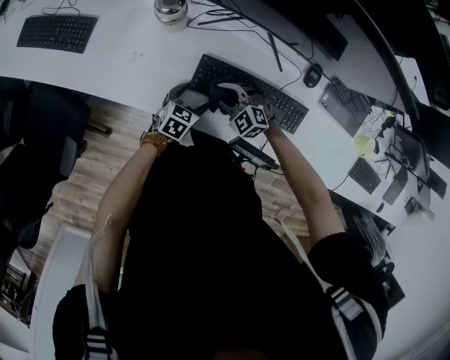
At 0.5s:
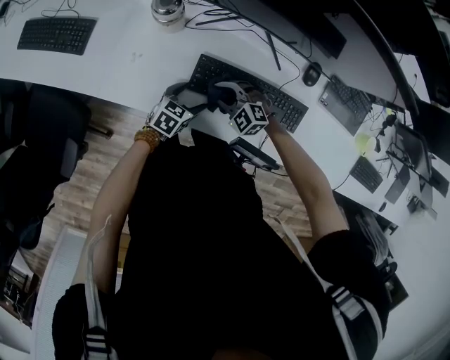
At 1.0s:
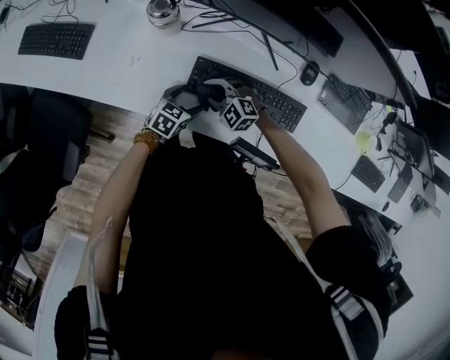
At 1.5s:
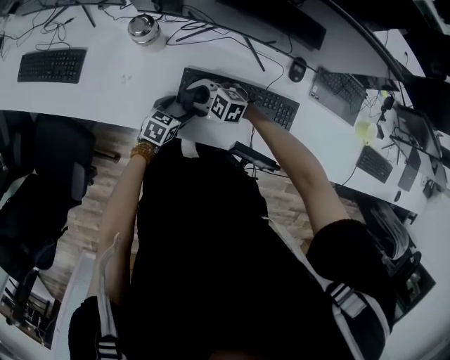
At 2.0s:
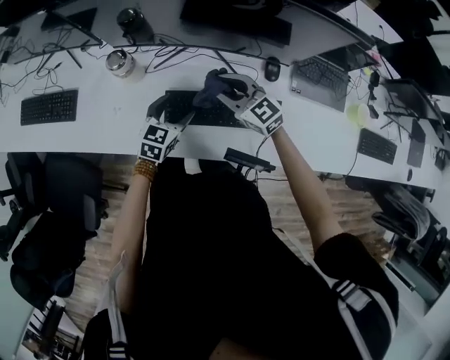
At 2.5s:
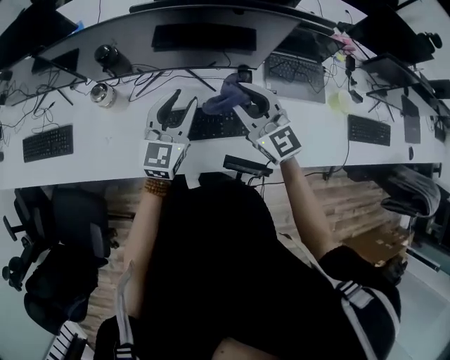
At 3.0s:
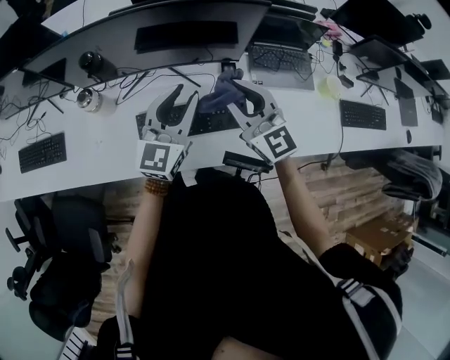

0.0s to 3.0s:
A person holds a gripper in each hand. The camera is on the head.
0.0s to 1.5s: The right gripper shifts by approximately 5 cm.
1.5s to 3.0s: Both grippers move upward, approximately 35 cm. The left gripper tips its fingers upward by some 50 degrees, and closes its fingers; the right gripper angles its fingers upward, by some 40 degrees.

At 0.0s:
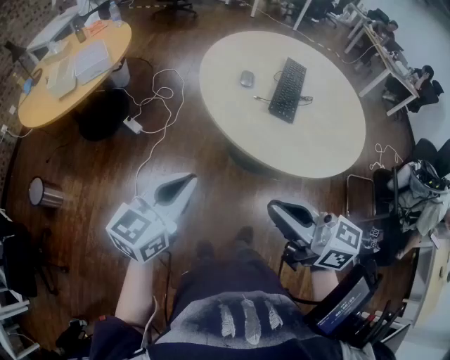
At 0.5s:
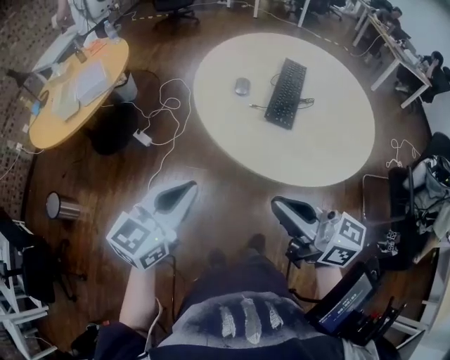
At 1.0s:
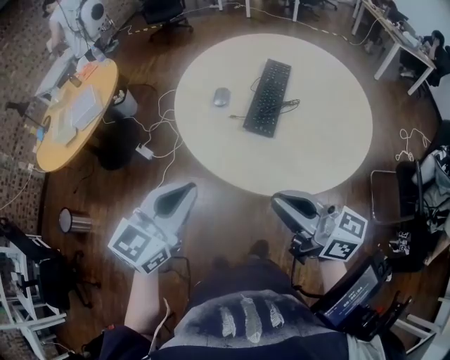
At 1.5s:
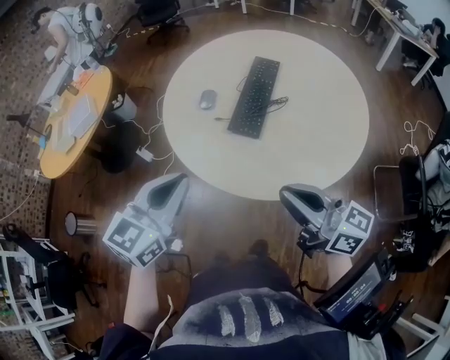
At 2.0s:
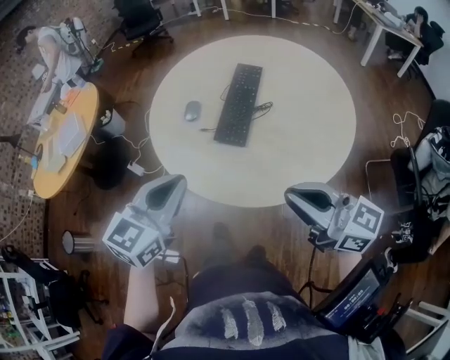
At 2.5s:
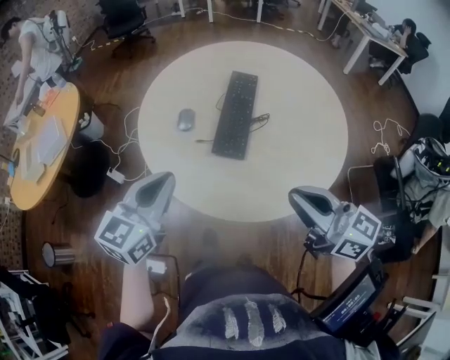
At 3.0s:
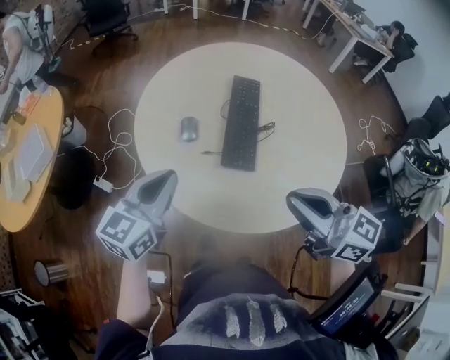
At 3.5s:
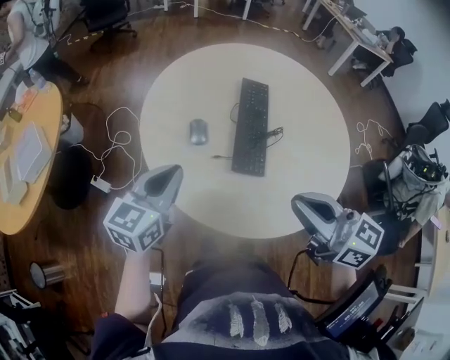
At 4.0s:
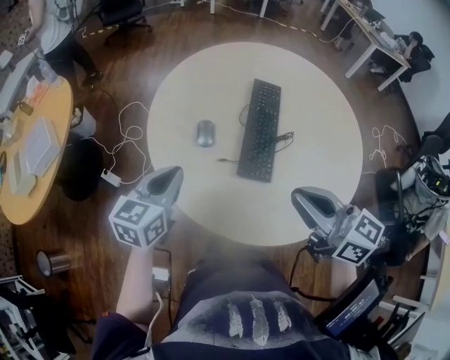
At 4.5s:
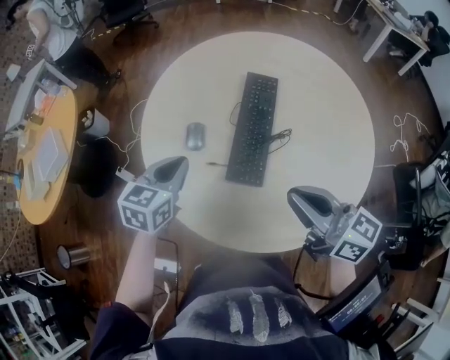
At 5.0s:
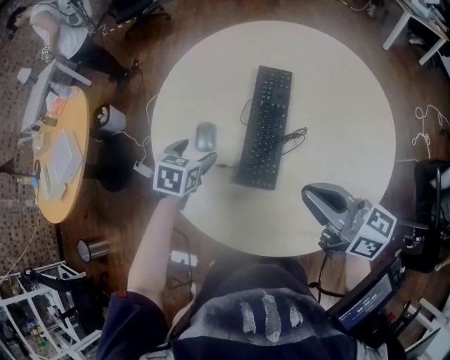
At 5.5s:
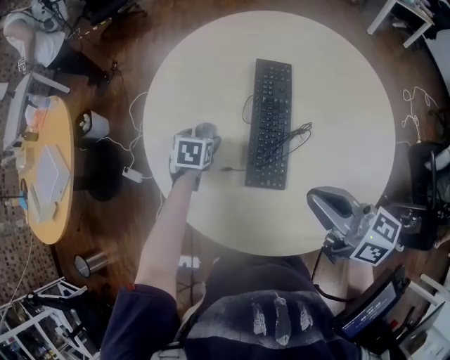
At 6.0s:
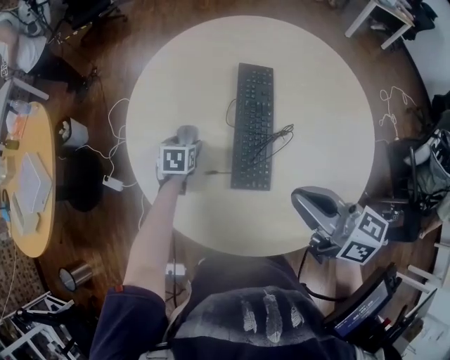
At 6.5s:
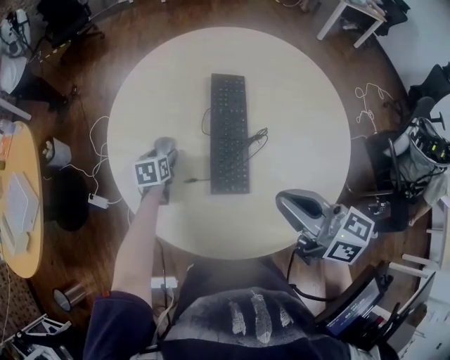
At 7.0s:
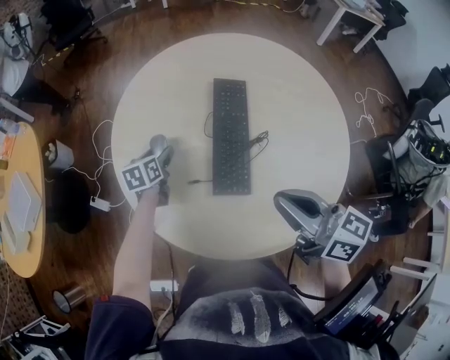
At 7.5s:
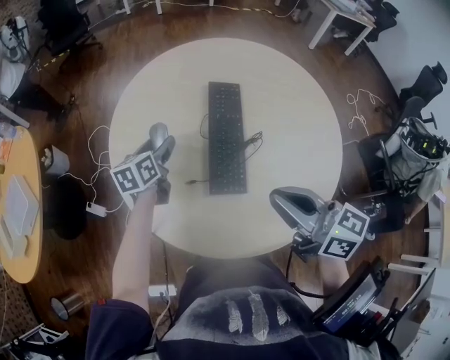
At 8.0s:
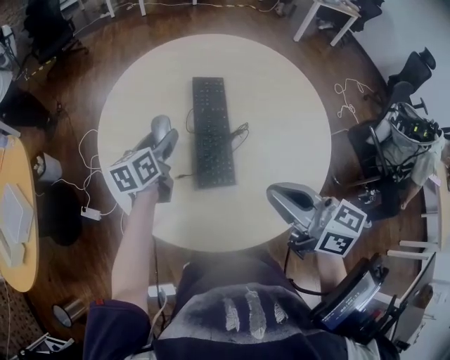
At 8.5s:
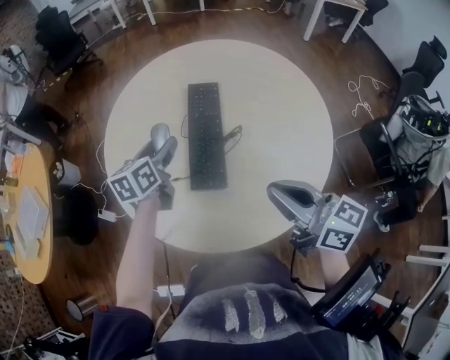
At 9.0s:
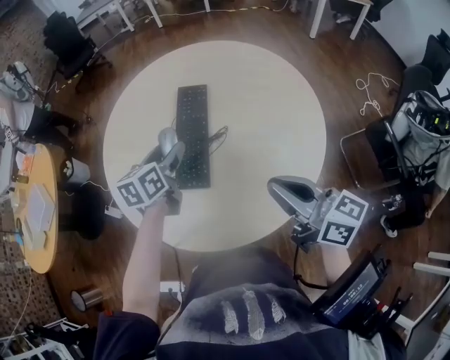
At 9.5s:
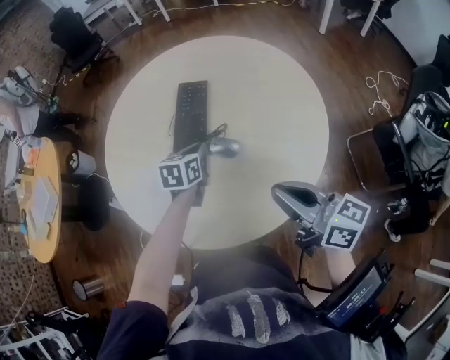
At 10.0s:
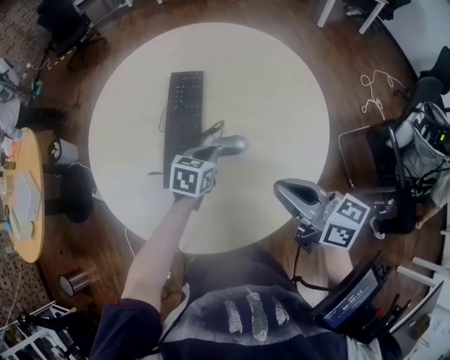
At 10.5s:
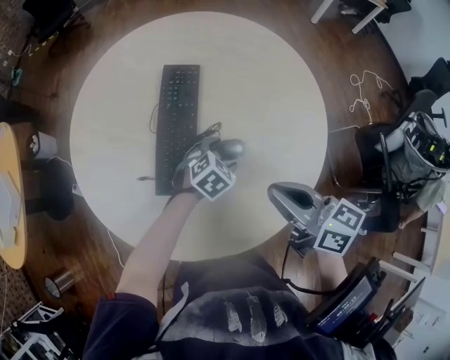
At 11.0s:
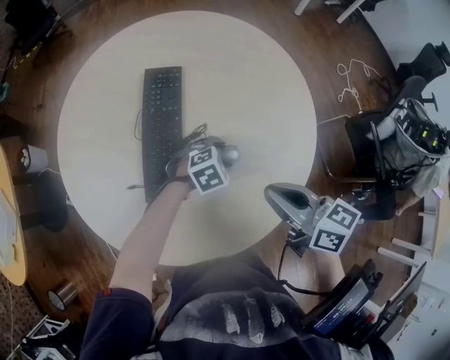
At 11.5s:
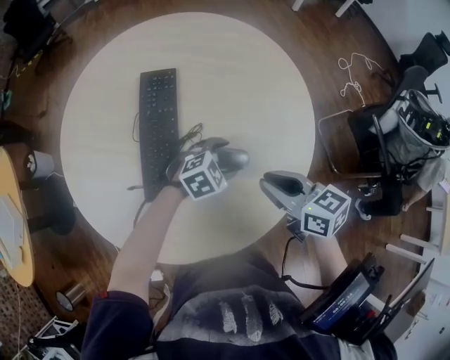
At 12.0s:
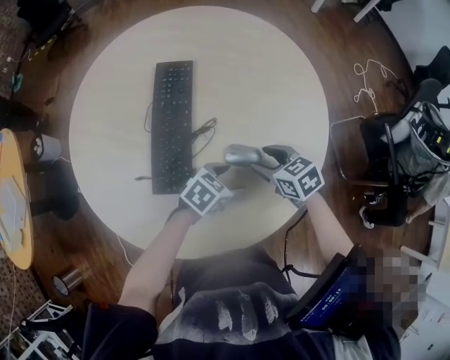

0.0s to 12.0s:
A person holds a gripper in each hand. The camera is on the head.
0.0s to 2.0s: The right gripper moves to the right, roughly 30 cm. The left gripper shifts approximately 25 cm to the right and forward.
2.0s to 4.0s: The right gripper heads forward and to the left, covering about 20 cm. The left gripper is displaced forward, to the left and downward by some 25 cm.
4.0s to 6.0s: The left gripper heads downward and forward, covering some 30 cm, points its fingers some 30 degrees further downward, and opens its fingers; the right gripper moves forward, some 5 cm.
6.0s to 8.0s: The left gripper shifts about 15 cm upward, and tilts its fingers about 30 degrees upward. The right gripper shifts by some 5 cm.
8.0s to 10.0s: The grippers both shift to the right by roughly 20 cm. The left gripper changes its angle by roughly 30 degrees, and closes up.
10.0s to 12.0s: The right gripper shifts about 20 cm downward, angles its fingers downward, by some 40 degrees, and opens up; the left gripper moves about 10 cm, rotates some 30 degrees, and opens up.

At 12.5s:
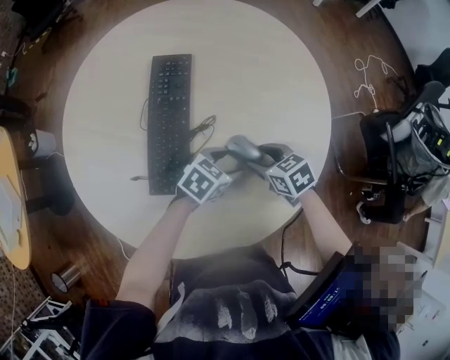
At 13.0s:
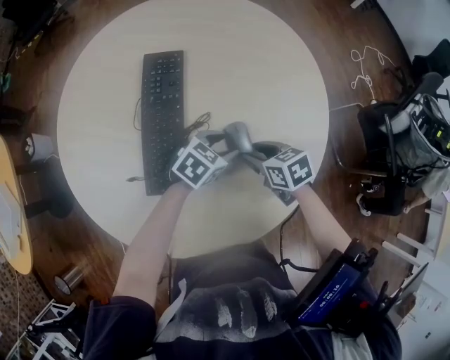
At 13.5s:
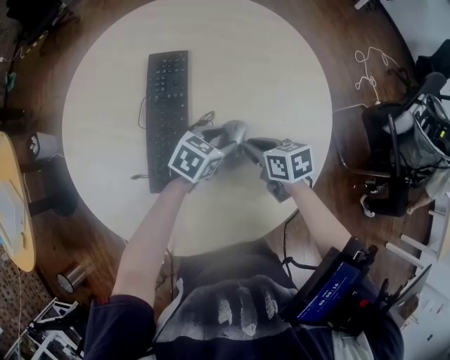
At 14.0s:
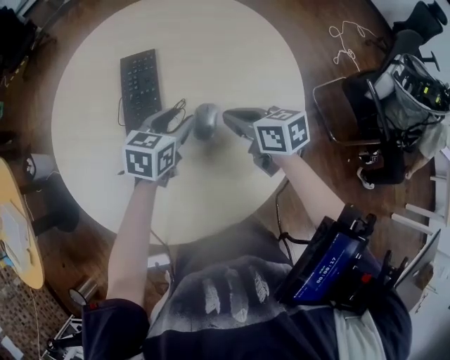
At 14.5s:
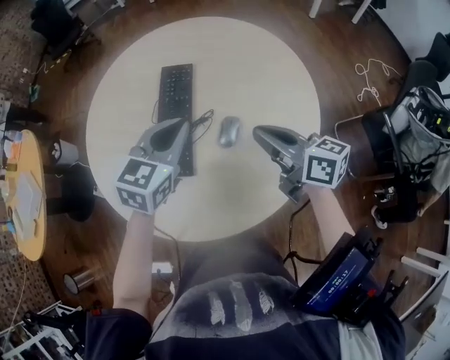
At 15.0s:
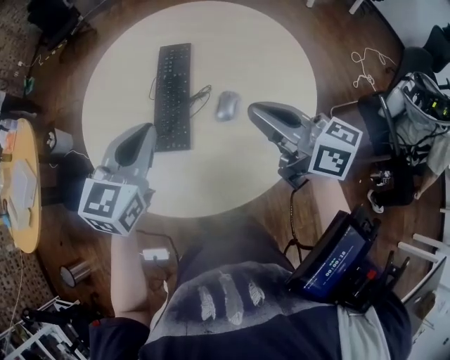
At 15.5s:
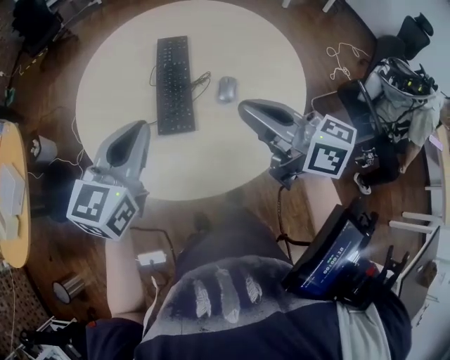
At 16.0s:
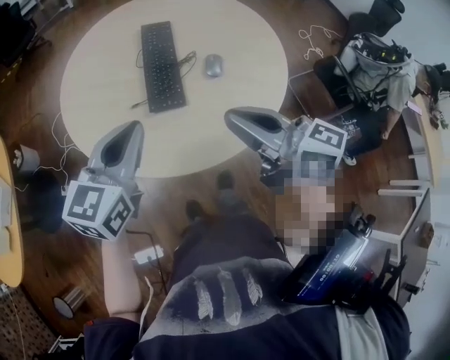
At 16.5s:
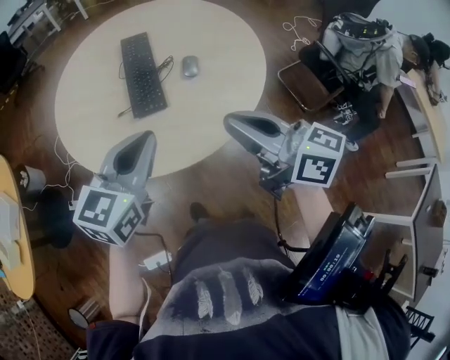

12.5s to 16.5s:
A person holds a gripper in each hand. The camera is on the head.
12.5s to 14.5s: The grippers both shift upward by some 20 cm. The right gripper angles its fingers upward, by about 40 degrees, and closes its fingers, while the left gripper changes its angle by about 40 degrees, and closes its fingers.
14.5s to 16.5s: The left gripper goes roughly 30 cm backward and to the left, while the right gripper goes about 30 cm backward, to the left and upward.

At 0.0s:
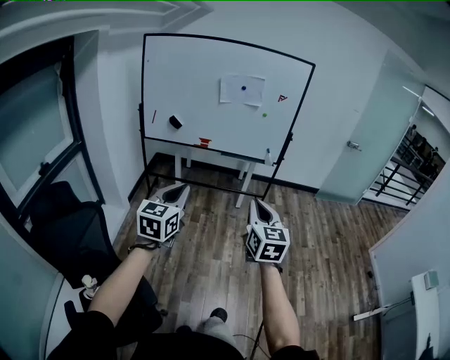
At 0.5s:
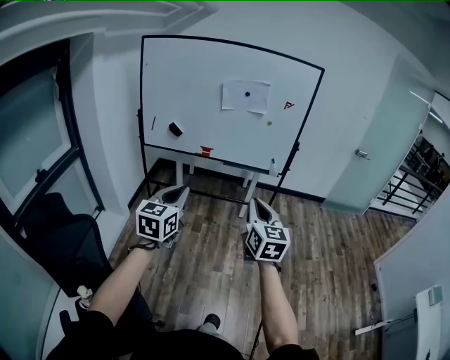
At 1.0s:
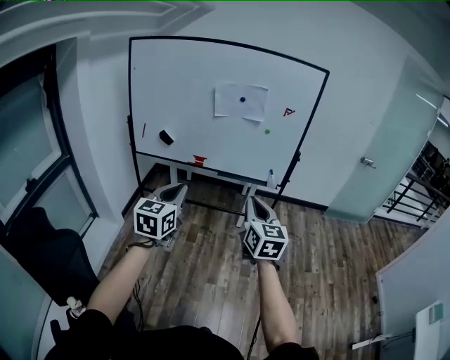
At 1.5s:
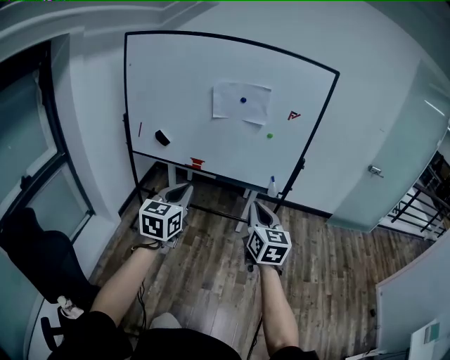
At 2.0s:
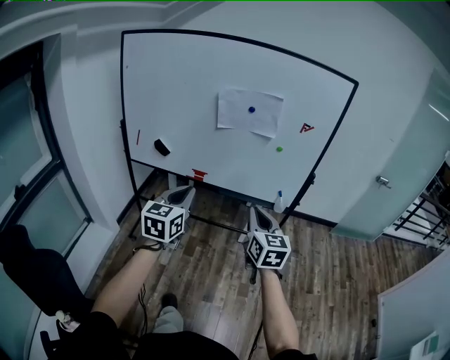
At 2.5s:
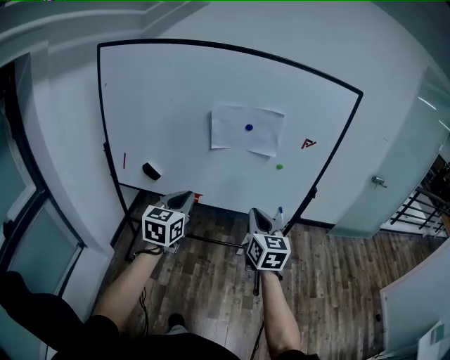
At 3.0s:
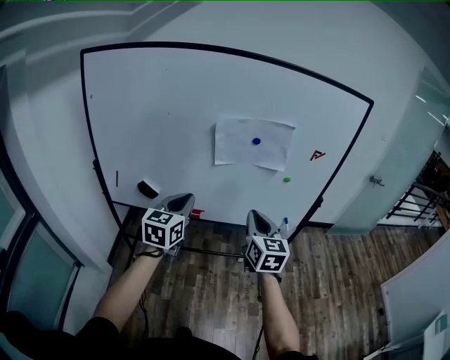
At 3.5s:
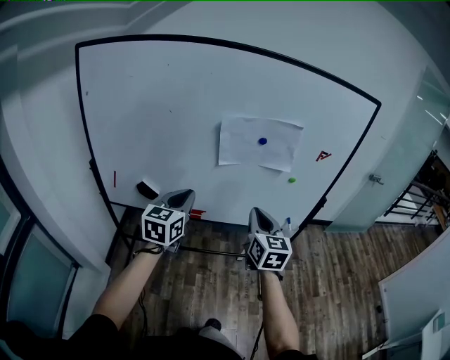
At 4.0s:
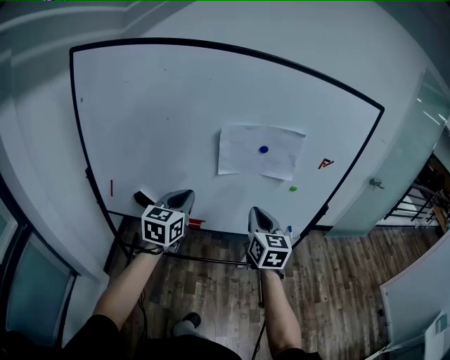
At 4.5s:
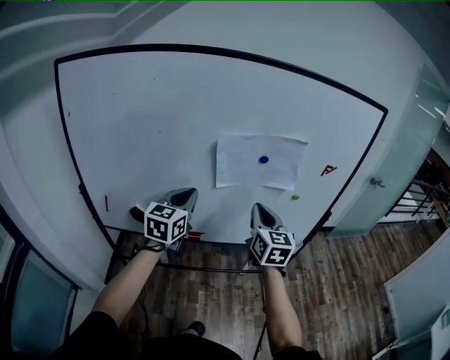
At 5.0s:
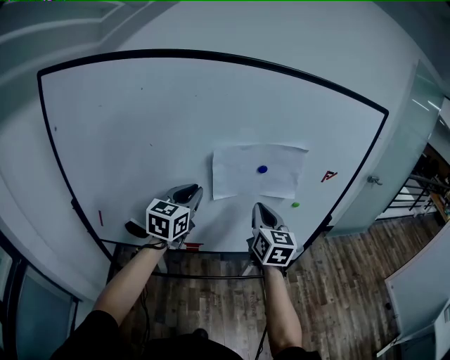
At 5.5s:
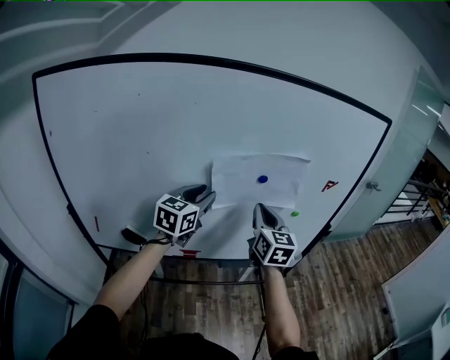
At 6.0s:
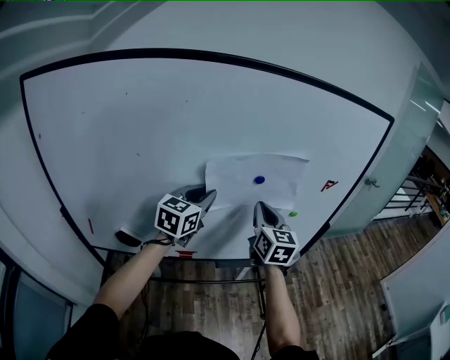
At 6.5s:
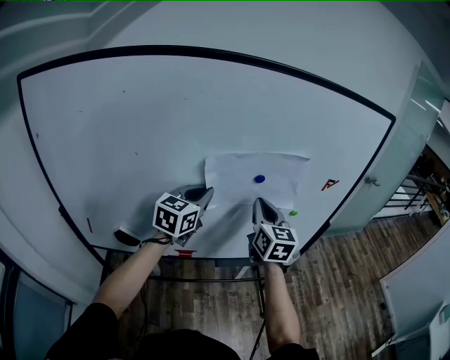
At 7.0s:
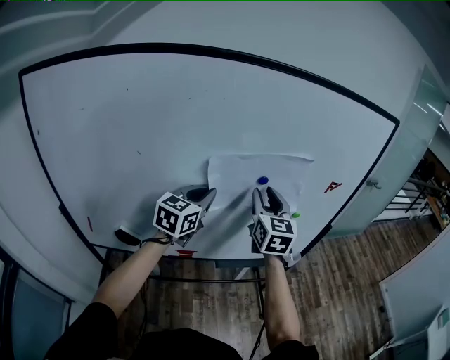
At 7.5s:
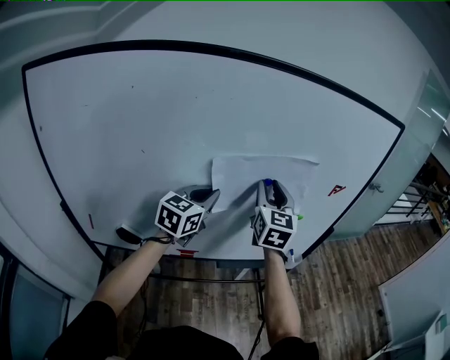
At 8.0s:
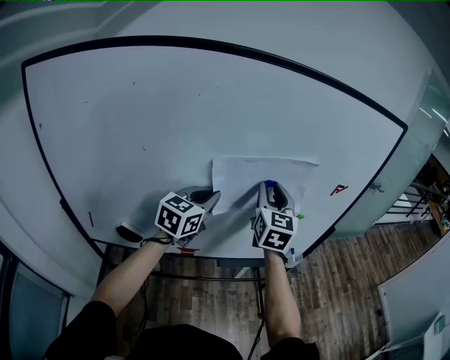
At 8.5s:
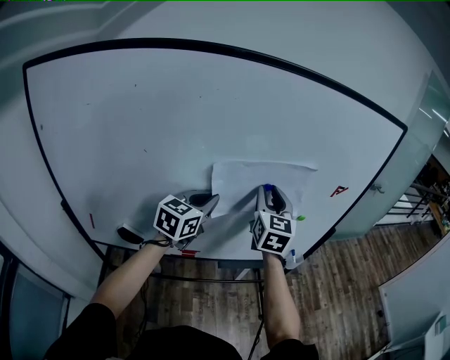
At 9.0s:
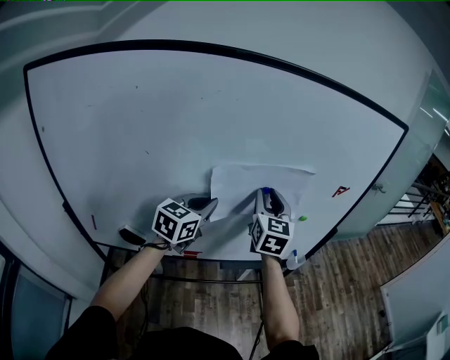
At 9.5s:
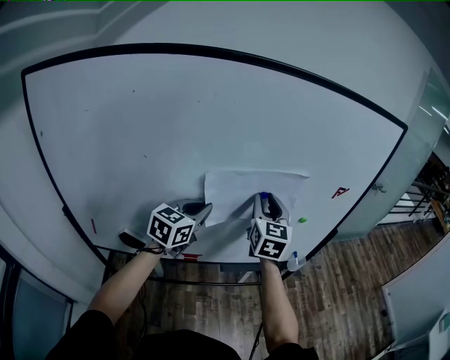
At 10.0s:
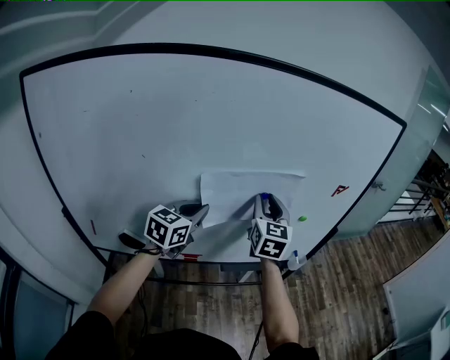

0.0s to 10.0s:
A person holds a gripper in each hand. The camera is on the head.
0.0s to 2.0s: The pair of grippers is taken forward, about 50 cm.
2.0s to 4.0s: The two grippers go some 30 cm forward and to the left.
4.0s to 6.0s: Both grippers move forward, approximately 20 cm.
6.0s to 8.0s: The right gripper moves some 5 cm, and opens its fingers.
8.0s to 10.0s: The grippers make only small movements.
